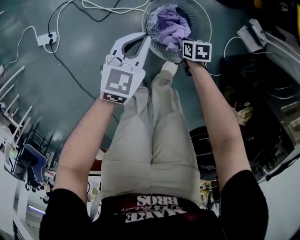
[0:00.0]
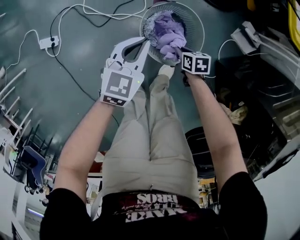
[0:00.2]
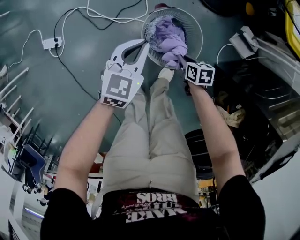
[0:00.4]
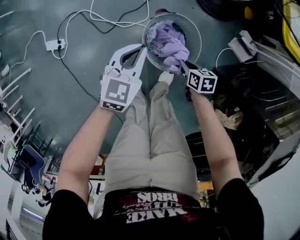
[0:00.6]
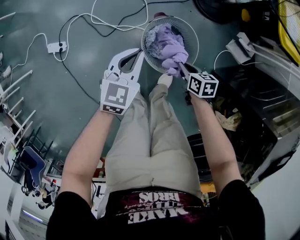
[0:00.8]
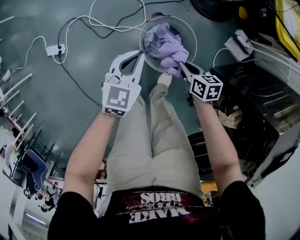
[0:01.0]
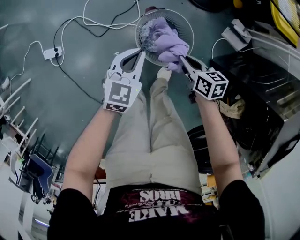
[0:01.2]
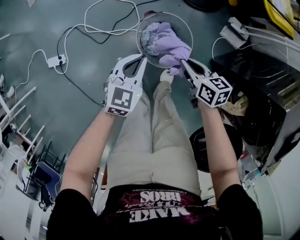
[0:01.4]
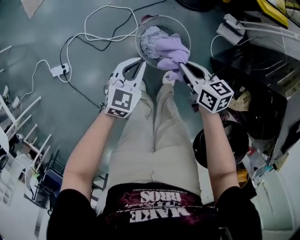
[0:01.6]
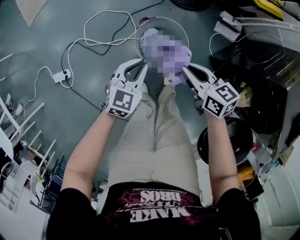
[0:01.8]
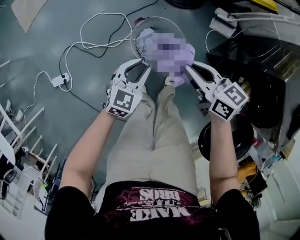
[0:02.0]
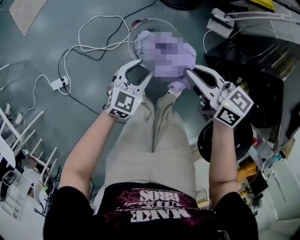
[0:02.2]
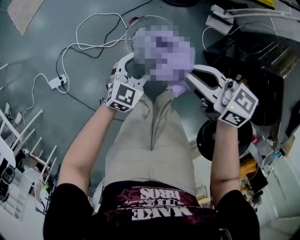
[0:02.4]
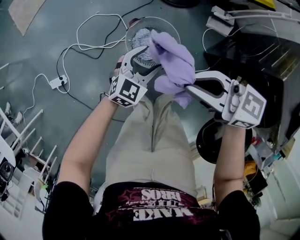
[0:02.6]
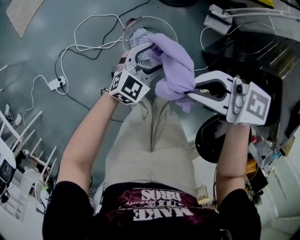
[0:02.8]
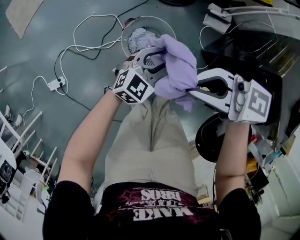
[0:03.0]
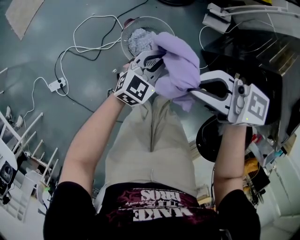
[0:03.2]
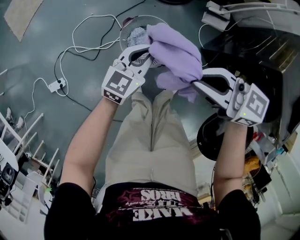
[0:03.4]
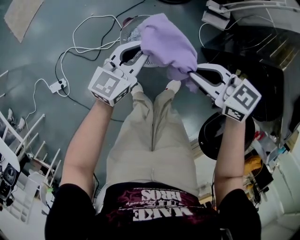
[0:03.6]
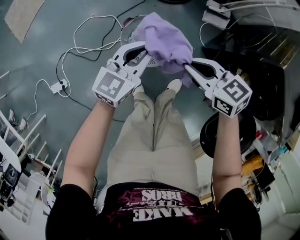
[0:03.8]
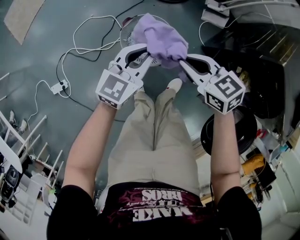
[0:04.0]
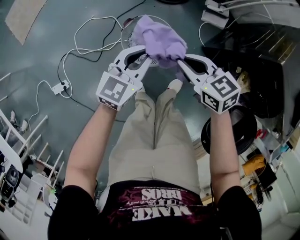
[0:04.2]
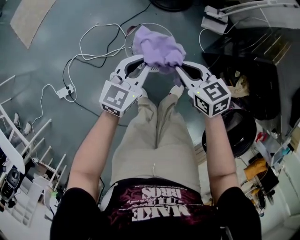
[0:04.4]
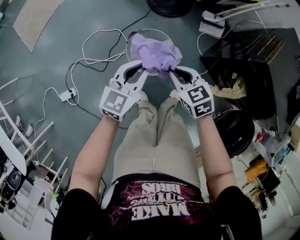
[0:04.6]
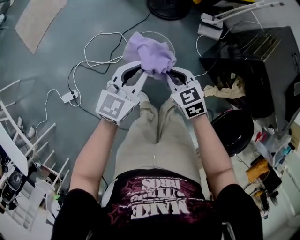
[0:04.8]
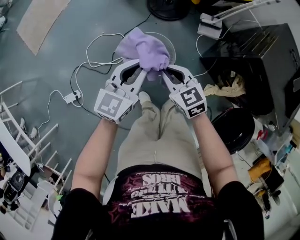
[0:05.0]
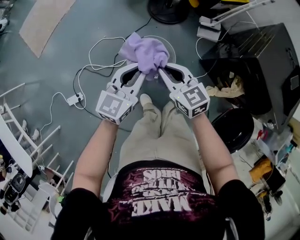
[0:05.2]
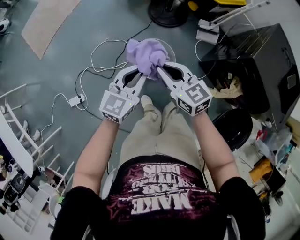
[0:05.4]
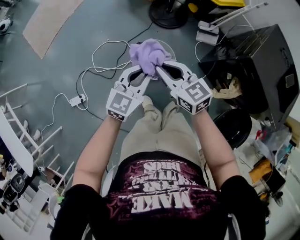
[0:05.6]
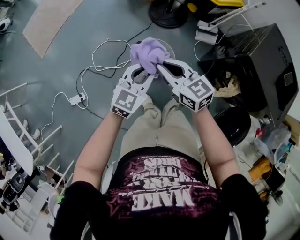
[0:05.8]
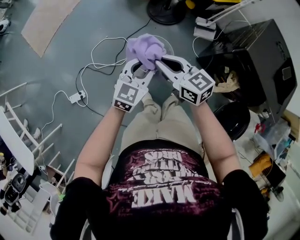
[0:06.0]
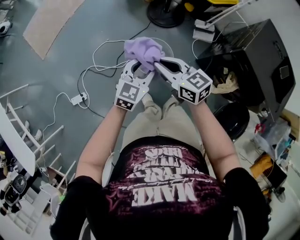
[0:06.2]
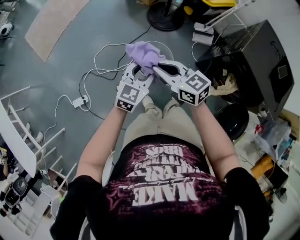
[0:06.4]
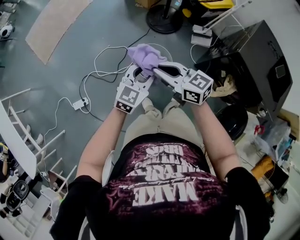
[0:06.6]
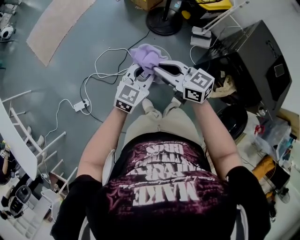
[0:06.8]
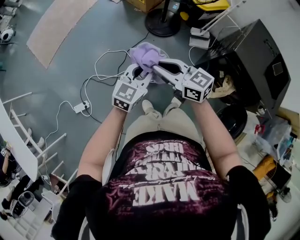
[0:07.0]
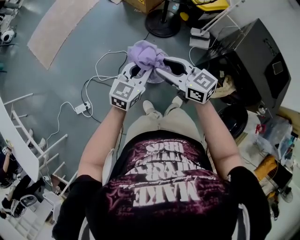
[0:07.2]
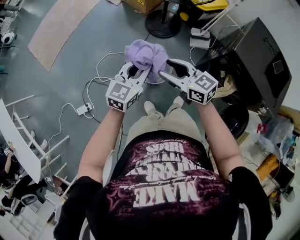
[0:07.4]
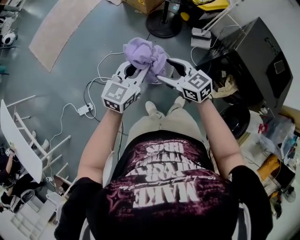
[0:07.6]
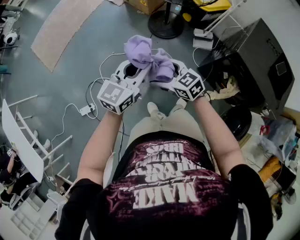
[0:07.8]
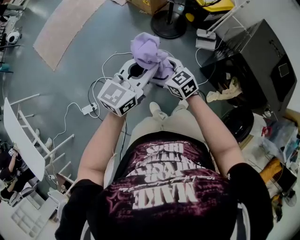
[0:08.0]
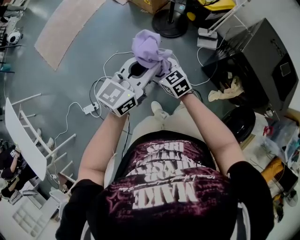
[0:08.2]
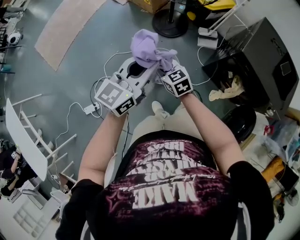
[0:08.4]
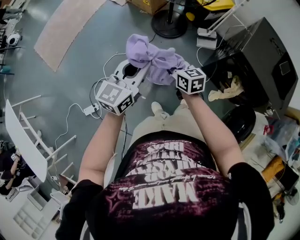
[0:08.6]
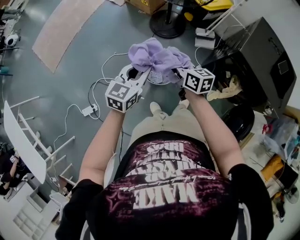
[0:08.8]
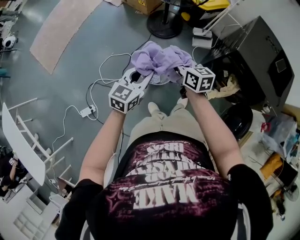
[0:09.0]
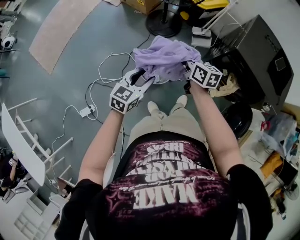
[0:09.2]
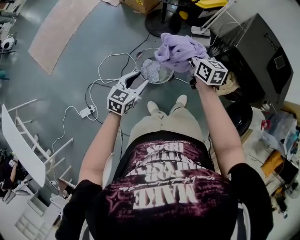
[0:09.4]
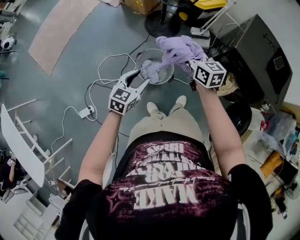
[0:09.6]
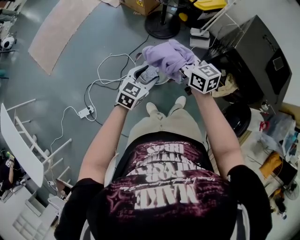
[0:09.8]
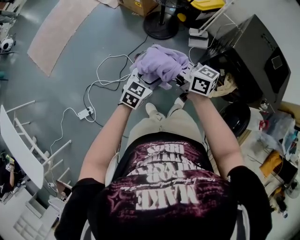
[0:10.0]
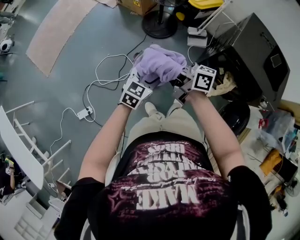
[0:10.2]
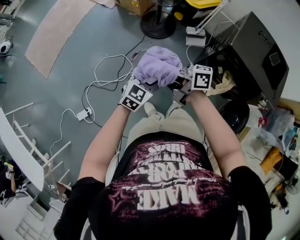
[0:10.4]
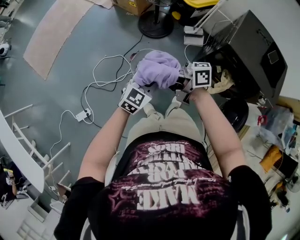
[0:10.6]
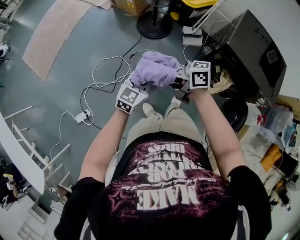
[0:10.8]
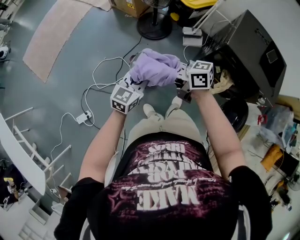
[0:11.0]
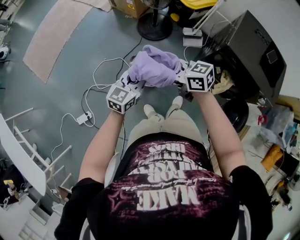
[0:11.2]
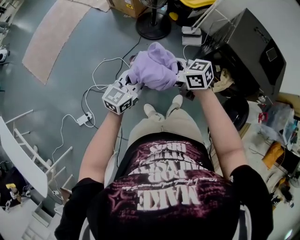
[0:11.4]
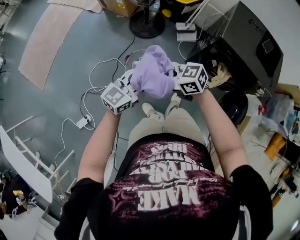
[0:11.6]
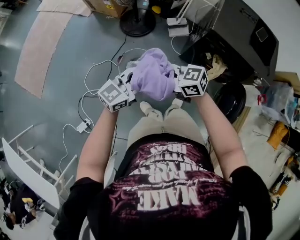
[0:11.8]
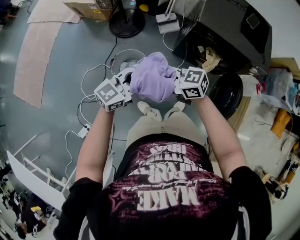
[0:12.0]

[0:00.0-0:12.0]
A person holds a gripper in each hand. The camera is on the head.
0:00.0 to 0:01.6: The left gripper goes some 10 cm upward. The right gripper is displaced upward by about 35 cm, and changes its angle by about 30 degrees.
0:01.6 to 0:03.0: The right gripper goes some 20 cm upward, and turns by about 40 degrees, while the left gripper moves approximately 15 cm, turns by about 30 degrees, and opens its fingers.
0:03.0 to 0:04.4: The right gripper goes approximately 15 cm downward, and points its fingers about 30 degrees further downward. The left gripper shifts roughly 10 cm upward, changes its angle by some 20 degrees, and closes its fingers.
0:04.4 to 0:06.0: The right gripper heads upward and to the left, covering about 20 cm, and turns by about 20 degrees. Meanwhile the left gripper is displaced upward by approximately 15 cm.
0:06.0 to 0:07.6: The right gripper opens, while the left gripper moves upward, approximately 10 cm.
0:07.6 to 0:09.0: The left gripper heads downward, covering roughly 5 cm. Meanwhile the right gripper heads forward, covering approximately 5 cm, turns by roughly 30 degrees, and closes.
0:09.0 to 0:10.4: The left gripper is displaced to the right by approximately 5 cm, and opens its fingers; the right gripper is displaced upward, backward and to the left by some 15 cm, and tips its fingers upward by approximately 30 degrees.
0:10.4 to 0:12.0: The right gripper changes place by some 15 cm, turns by roughly 30 degrees, and opens, then closes once more, while the left gripper shifts by about 10 cm, changes its angle by about 40 degrees, and closes its fingers.

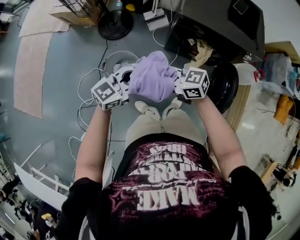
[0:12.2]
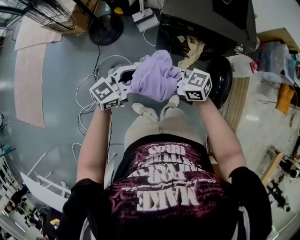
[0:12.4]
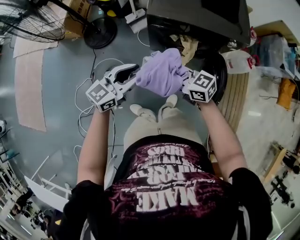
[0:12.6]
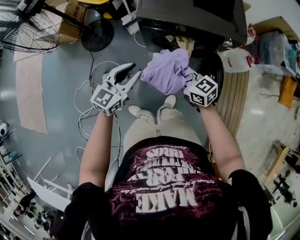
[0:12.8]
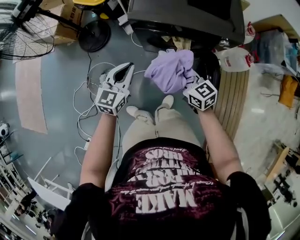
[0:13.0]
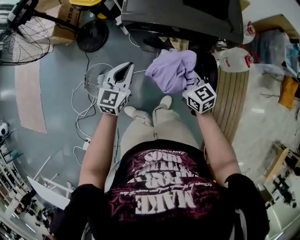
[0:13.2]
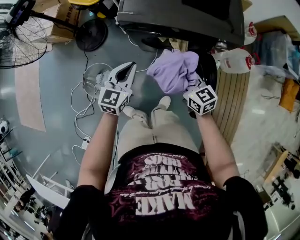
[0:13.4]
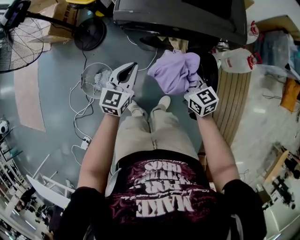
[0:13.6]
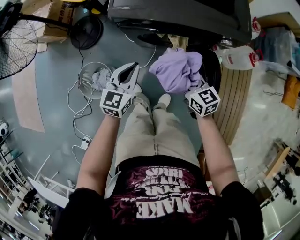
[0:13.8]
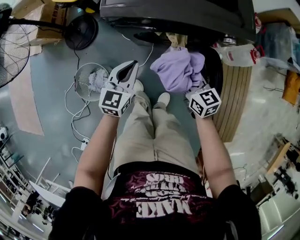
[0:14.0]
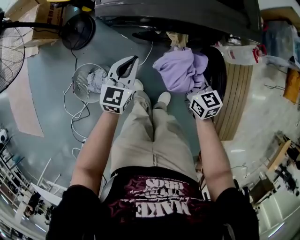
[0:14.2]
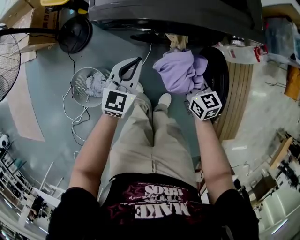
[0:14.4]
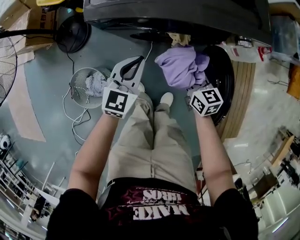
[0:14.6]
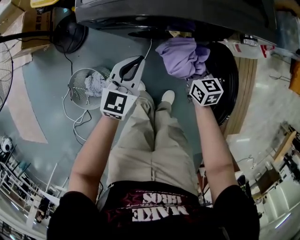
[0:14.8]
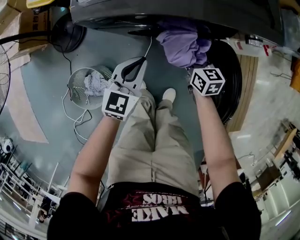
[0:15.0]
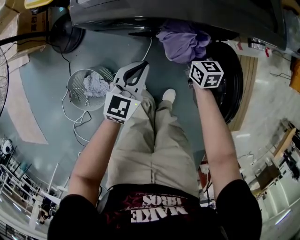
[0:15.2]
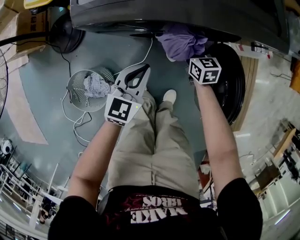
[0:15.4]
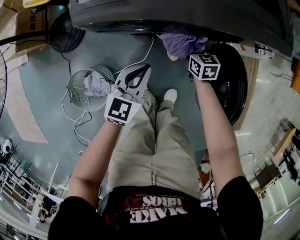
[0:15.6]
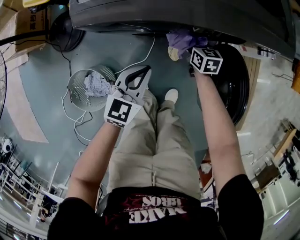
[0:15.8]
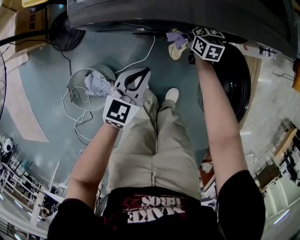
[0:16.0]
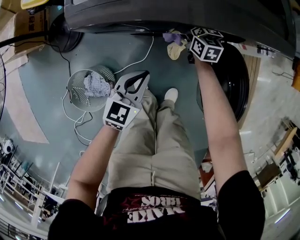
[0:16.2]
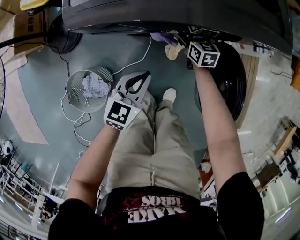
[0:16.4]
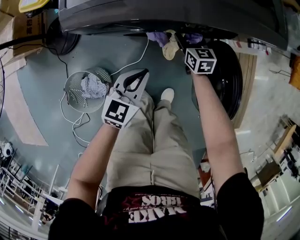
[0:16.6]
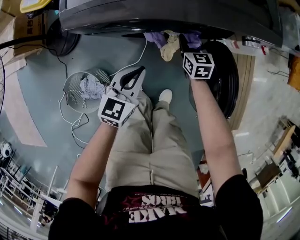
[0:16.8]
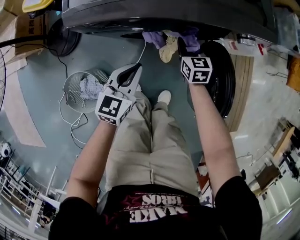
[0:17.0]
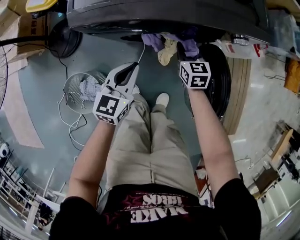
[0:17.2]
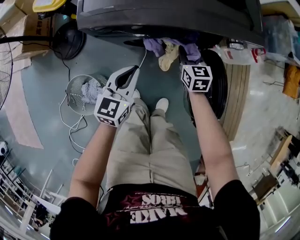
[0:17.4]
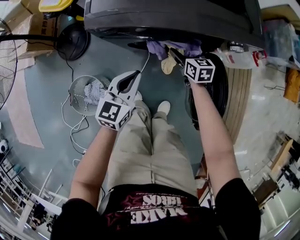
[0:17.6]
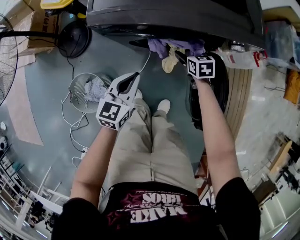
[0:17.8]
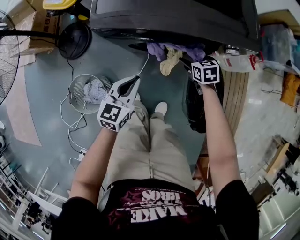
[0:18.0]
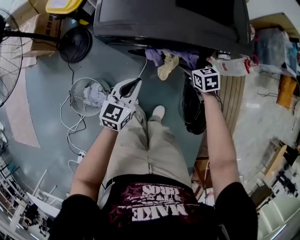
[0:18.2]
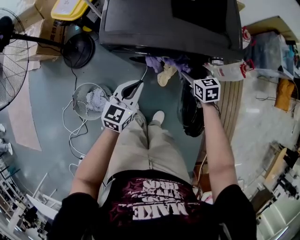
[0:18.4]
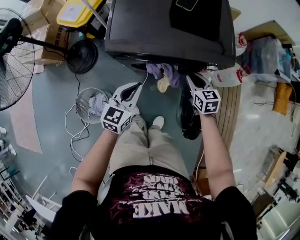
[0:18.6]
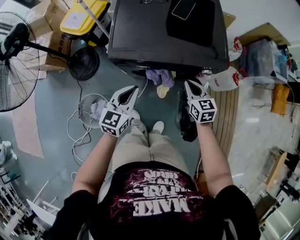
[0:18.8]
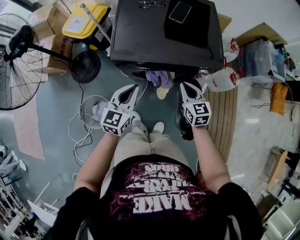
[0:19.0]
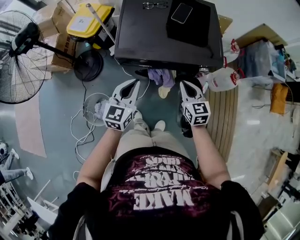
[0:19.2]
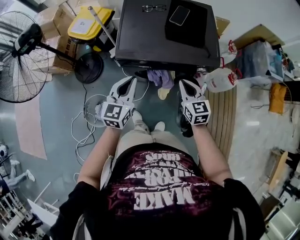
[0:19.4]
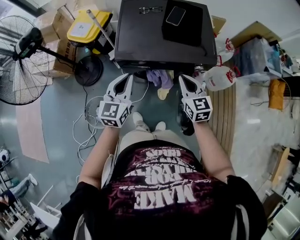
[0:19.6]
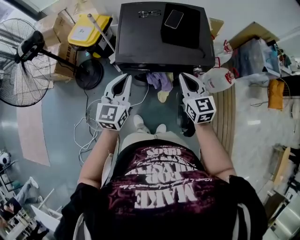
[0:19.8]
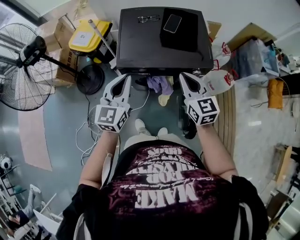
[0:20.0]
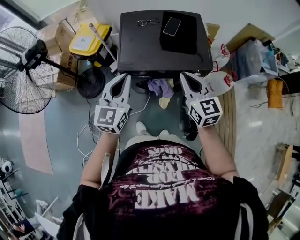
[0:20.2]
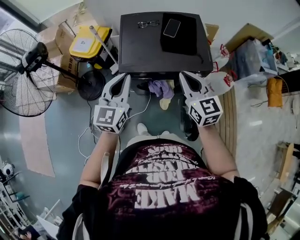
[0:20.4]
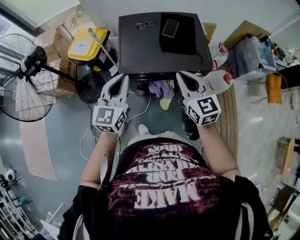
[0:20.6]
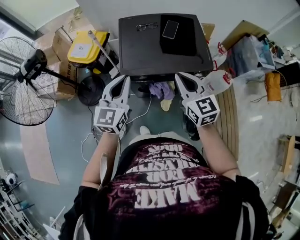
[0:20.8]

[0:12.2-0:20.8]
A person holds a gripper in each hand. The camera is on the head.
0:12.2 to 0:13.6: The right gripper moves about 40 cm, and swivels roughly 50 degrees; the left gripper moves about 25 cm, and rotates about 30 degrees.
0:13.6 to 0:15.0: The left gripper goes about 15 cm downward and forward. Meanwhile the right gripper is displaced downward and forward by approximately 20 cm, and changes its angle by approximately 30 degrees.
0:15.0 to 0:16.6: The right gripper heads forward and downward, covering approximately 10 cm, and opens and closes again.
0:16.6 to 0:18.0: The left gripper is displaced upward by roughly 5 cm, while the right gripper moves upward and to the right, approximately 10 cm, changes its angle by some 20 degrees, and opens up.
0:18.0 to 0:19.4: The two grippers go approximately 25 cm upward. The right gripper tips its fingers upward by about 30 degrees, and closes.
0:19.4 to 0:20.8: The two grippers go about 15 cm upward.

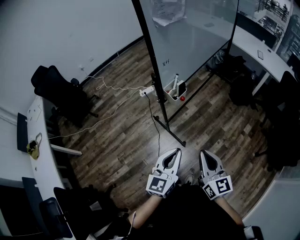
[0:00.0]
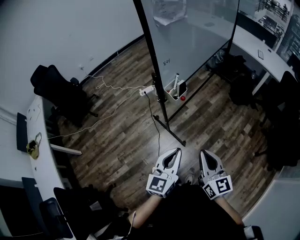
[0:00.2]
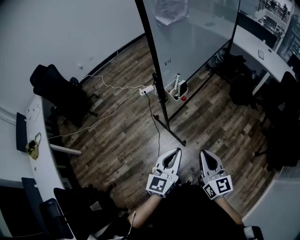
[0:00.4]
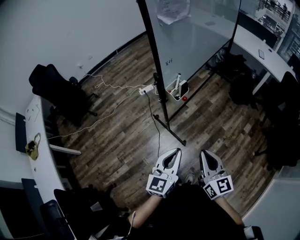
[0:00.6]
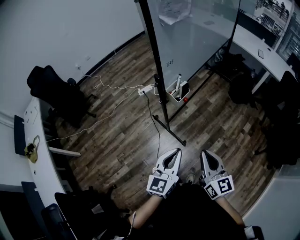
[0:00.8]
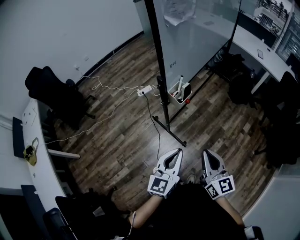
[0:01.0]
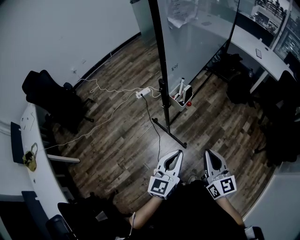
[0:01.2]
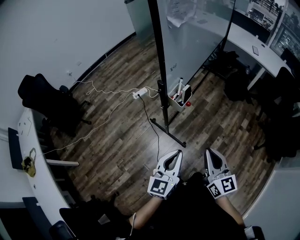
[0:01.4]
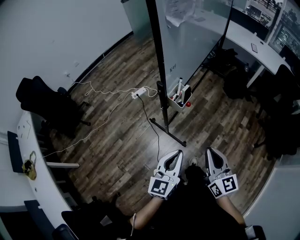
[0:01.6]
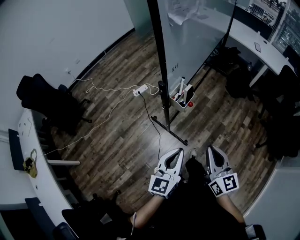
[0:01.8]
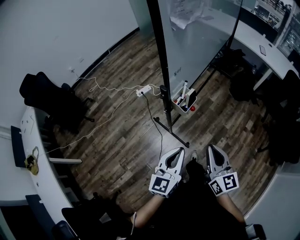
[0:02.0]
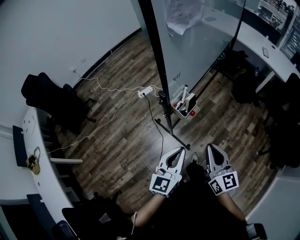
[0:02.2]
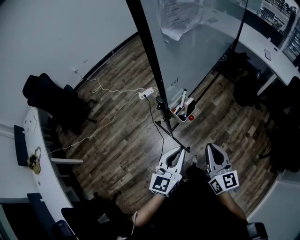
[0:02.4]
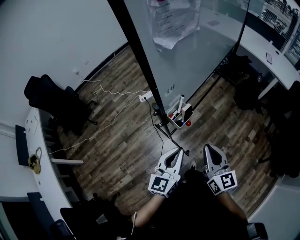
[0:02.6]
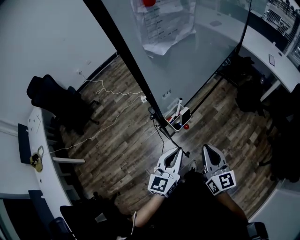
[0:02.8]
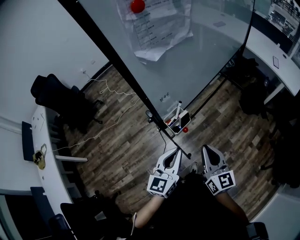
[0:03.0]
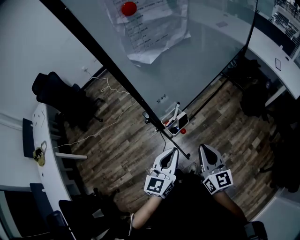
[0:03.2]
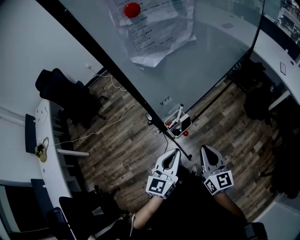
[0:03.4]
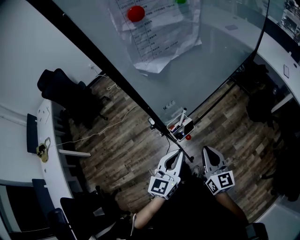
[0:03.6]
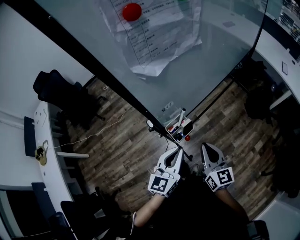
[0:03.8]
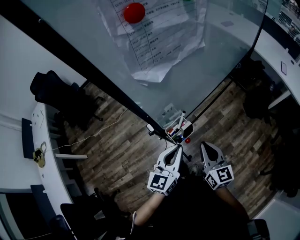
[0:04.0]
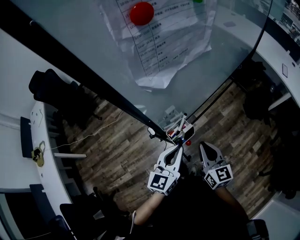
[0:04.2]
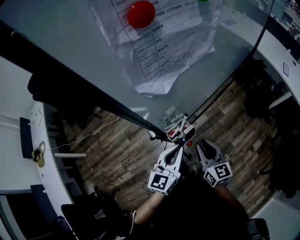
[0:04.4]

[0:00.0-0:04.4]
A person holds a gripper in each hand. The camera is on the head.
0:00.0 to 0:01.4: The right gripper travels forward and to the left by about 10 cm. Meanwhile the left gripper goes about 10 cm to the left and forward.
0:01.4 to 0:03.0: Both grippers travel together forward, approximately 15 cm.
0:03.0 to 0:04.4: The left gripper moves forward, approximately 10 cm, while the right gripper is displaced forward and downward by some 10 cm.
